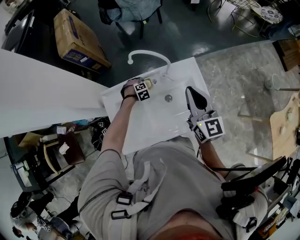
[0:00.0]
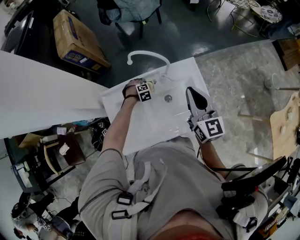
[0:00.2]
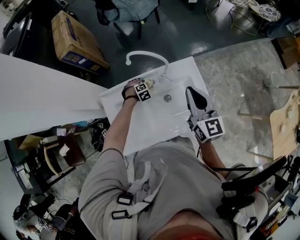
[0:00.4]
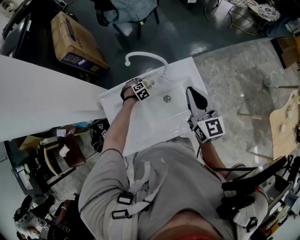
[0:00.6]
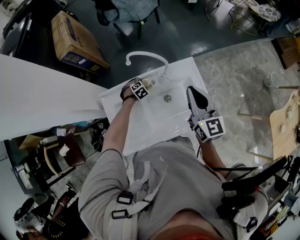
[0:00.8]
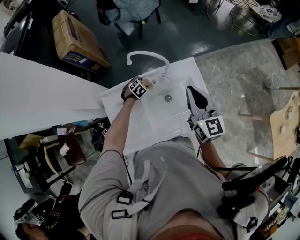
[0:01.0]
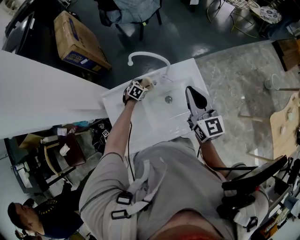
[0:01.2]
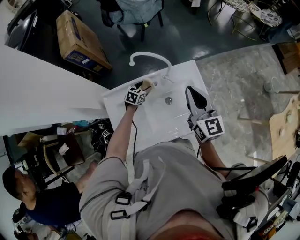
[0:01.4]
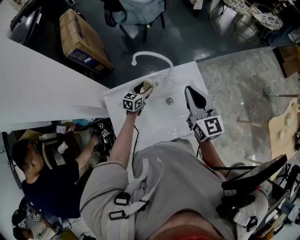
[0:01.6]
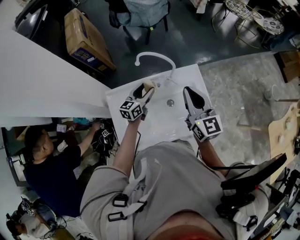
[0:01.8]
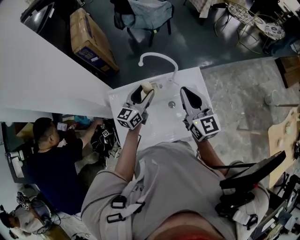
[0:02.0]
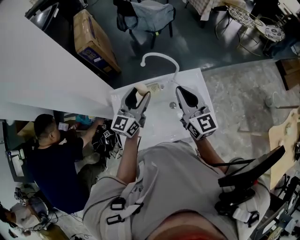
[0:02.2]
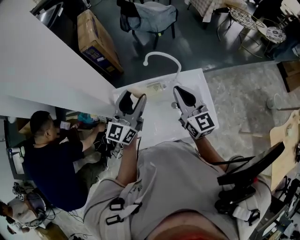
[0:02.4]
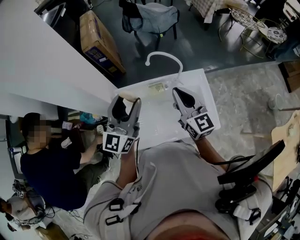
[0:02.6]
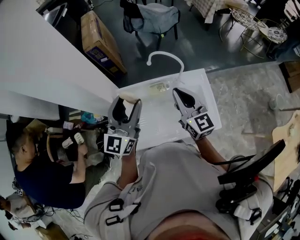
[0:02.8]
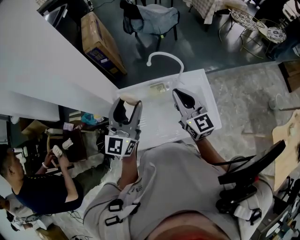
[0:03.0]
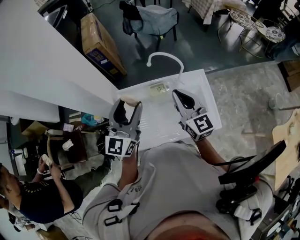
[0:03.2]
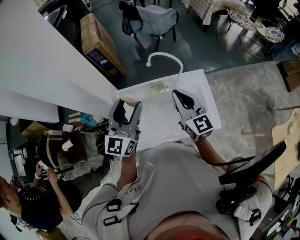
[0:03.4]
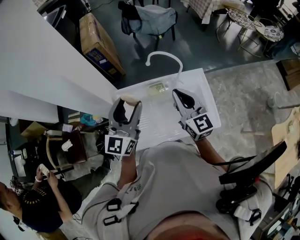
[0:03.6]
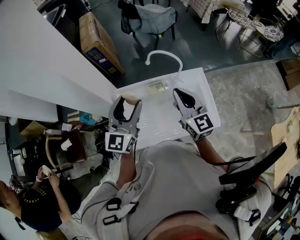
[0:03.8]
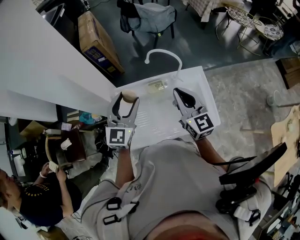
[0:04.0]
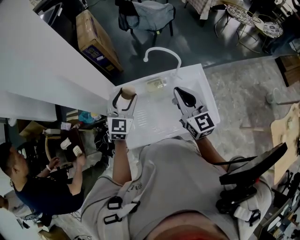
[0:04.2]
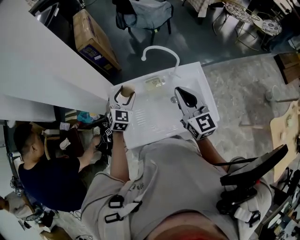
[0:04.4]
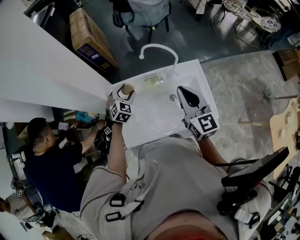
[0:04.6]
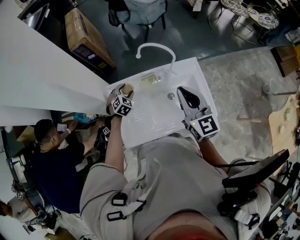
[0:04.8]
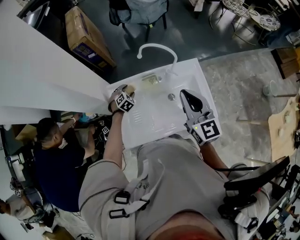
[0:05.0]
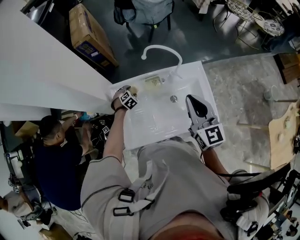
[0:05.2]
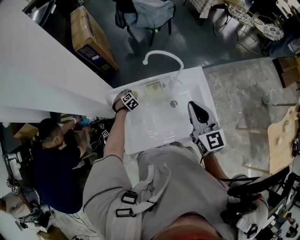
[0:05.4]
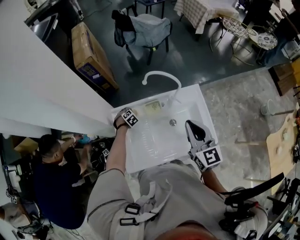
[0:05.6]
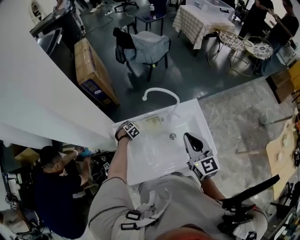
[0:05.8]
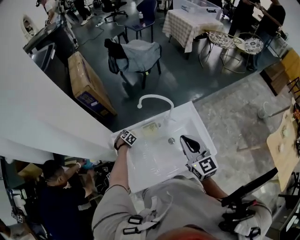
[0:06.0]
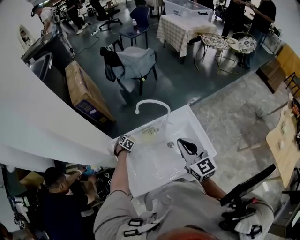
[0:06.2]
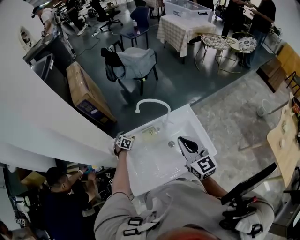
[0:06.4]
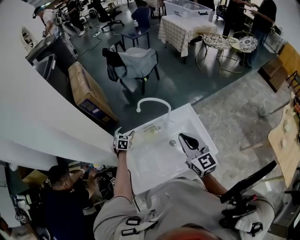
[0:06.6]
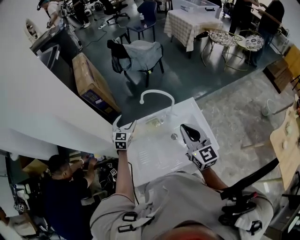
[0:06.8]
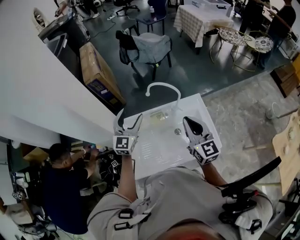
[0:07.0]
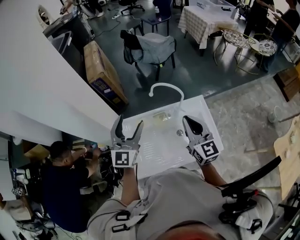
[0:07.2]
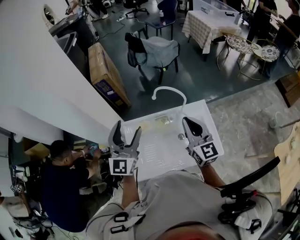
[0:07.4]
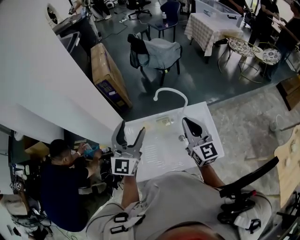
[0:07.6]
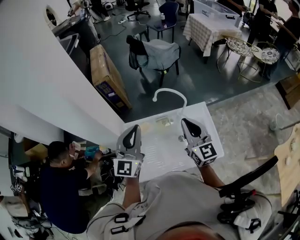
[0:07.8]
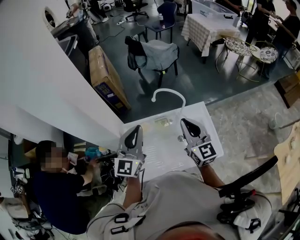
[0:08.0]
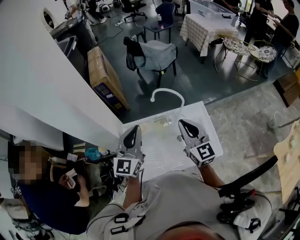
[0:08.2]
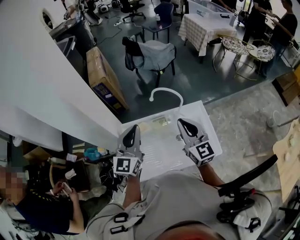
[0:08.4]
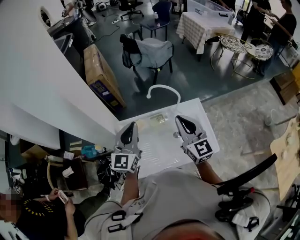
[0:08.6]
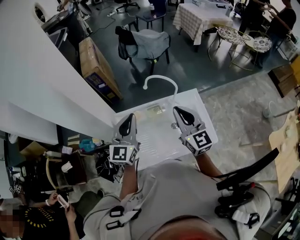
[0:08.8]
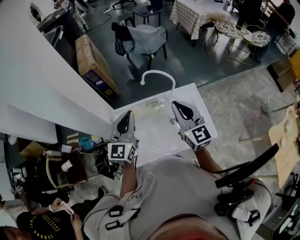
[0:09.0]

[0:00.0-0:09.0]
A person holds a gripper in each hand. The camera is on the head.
0:00.0 to 0:01.6: The left gripper travels upward by roughly 15 cm, and tilts its fingers about 50 degrees upward.
0:01.6 to 0:03.0: The right gripper moves to the left and backward, about 10 cm, while the left gripper goes roughly 40 cm upward and backward, and tilts its fingers roughly 40 degrees upward.
0:03.0 to 0:04.4: The left gripper shifts about 20 cm downward and forward, and angles its fingers downward, by roughly 40 degrees.
0:04.4 to 0:06.0: The left gripper goes some 35 cm downward, and tilts its fingers roughly 50 degrees downward.
0:06.0 to 0:07.6: The left gripper is displaced upward by roughly 50 cm, and tilts its fingers some 80 degrees upward, while the right gripper travels upward by roughly 5 cm.
0:07.6 to 0:09.0: The left gripper shifts roughly 5 cm downward, and closes.

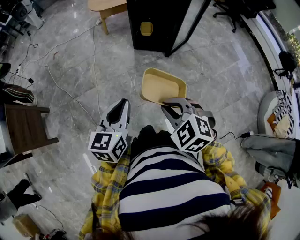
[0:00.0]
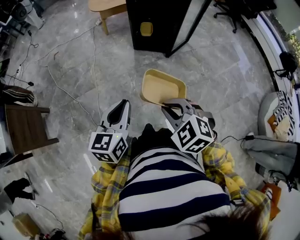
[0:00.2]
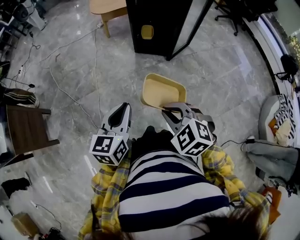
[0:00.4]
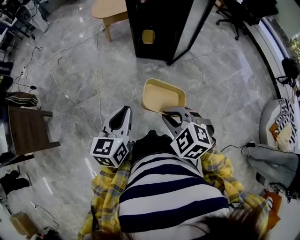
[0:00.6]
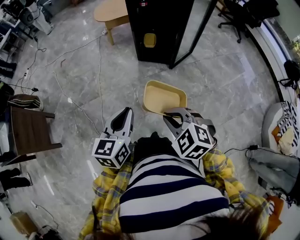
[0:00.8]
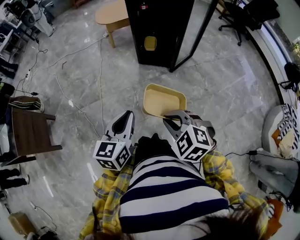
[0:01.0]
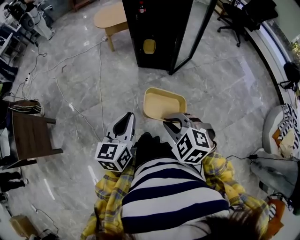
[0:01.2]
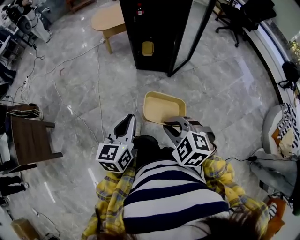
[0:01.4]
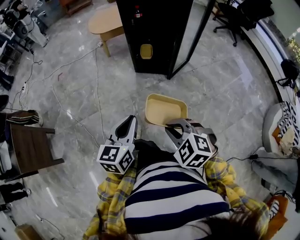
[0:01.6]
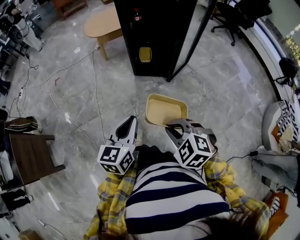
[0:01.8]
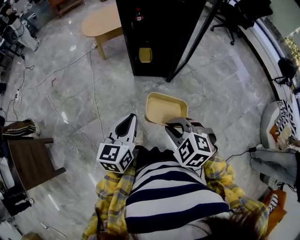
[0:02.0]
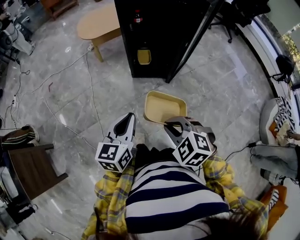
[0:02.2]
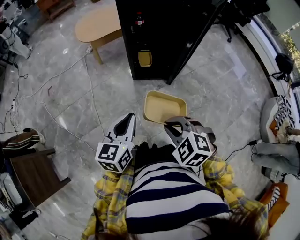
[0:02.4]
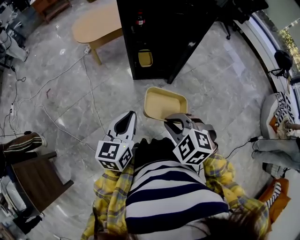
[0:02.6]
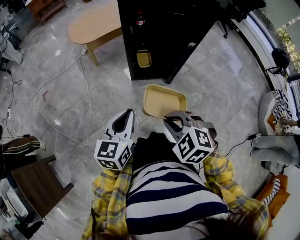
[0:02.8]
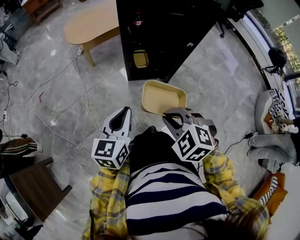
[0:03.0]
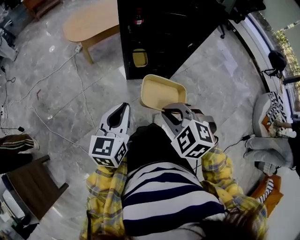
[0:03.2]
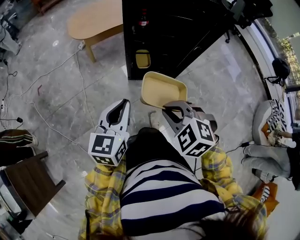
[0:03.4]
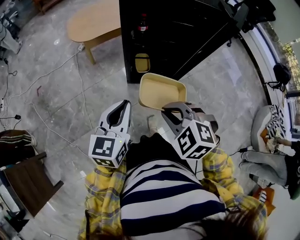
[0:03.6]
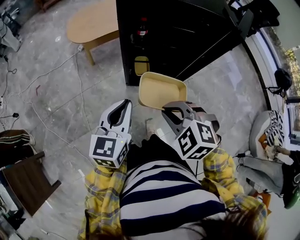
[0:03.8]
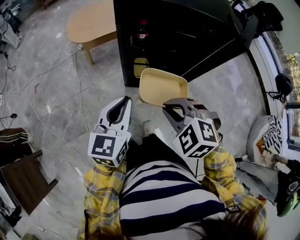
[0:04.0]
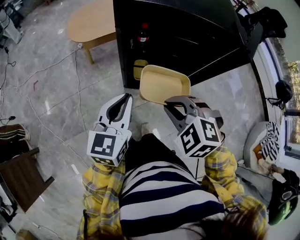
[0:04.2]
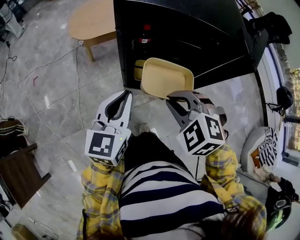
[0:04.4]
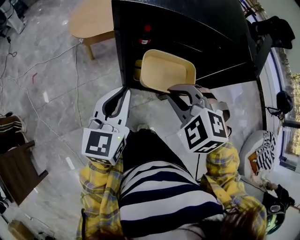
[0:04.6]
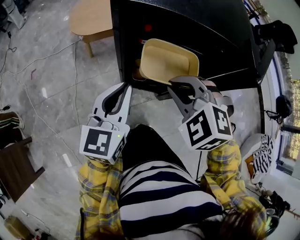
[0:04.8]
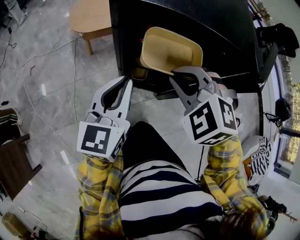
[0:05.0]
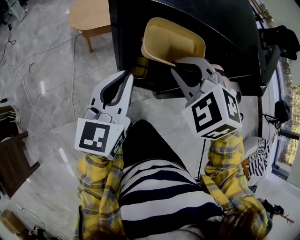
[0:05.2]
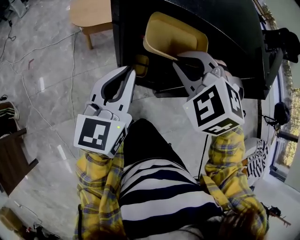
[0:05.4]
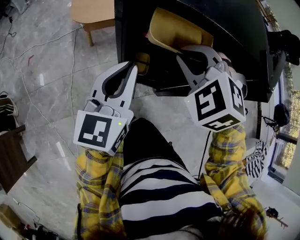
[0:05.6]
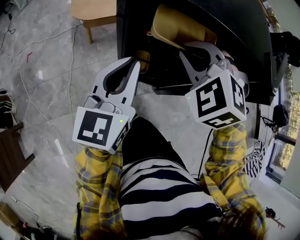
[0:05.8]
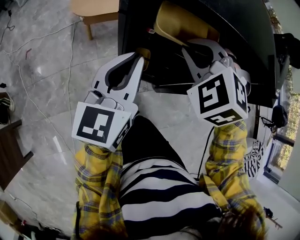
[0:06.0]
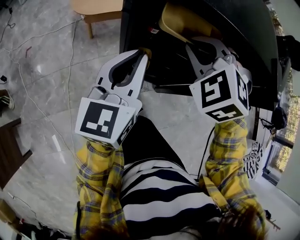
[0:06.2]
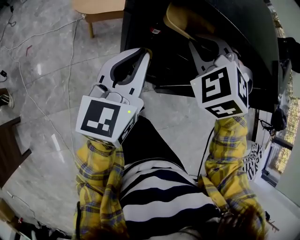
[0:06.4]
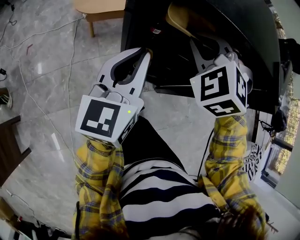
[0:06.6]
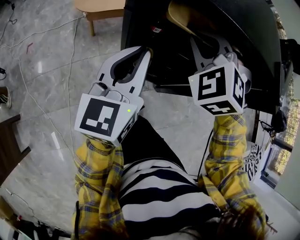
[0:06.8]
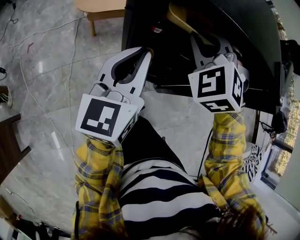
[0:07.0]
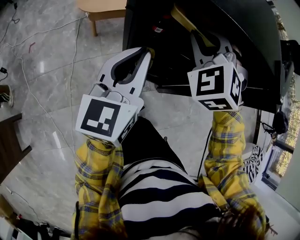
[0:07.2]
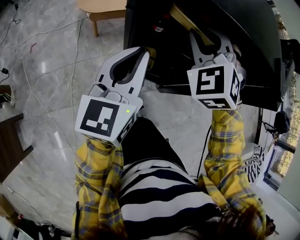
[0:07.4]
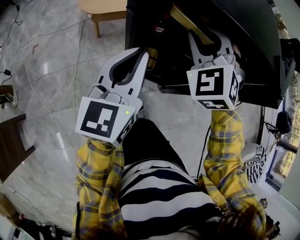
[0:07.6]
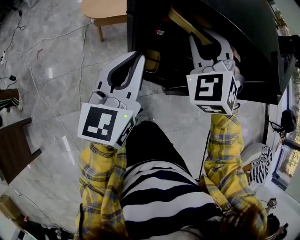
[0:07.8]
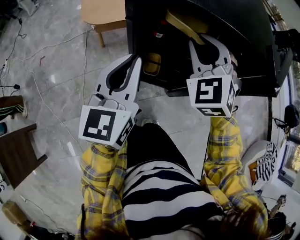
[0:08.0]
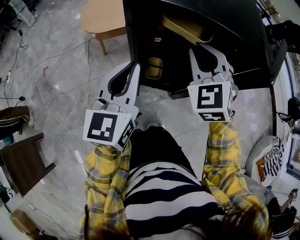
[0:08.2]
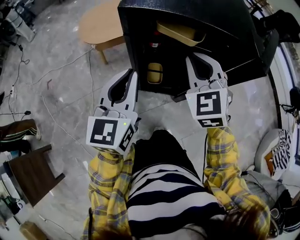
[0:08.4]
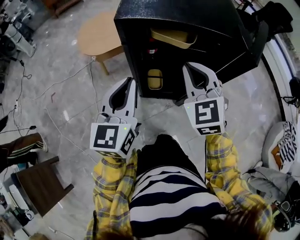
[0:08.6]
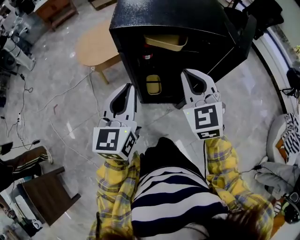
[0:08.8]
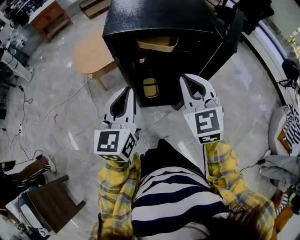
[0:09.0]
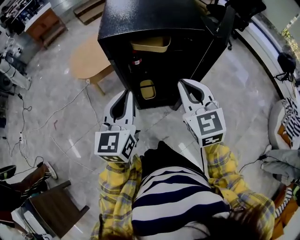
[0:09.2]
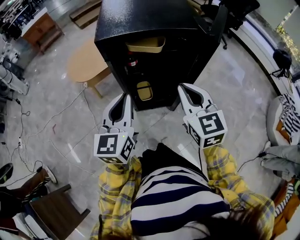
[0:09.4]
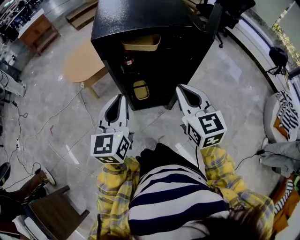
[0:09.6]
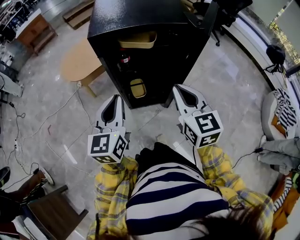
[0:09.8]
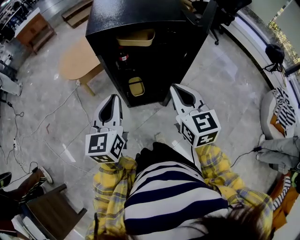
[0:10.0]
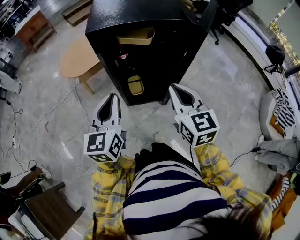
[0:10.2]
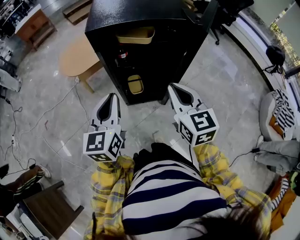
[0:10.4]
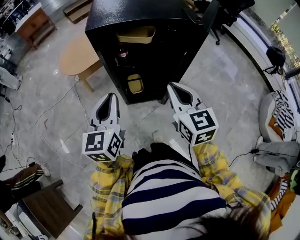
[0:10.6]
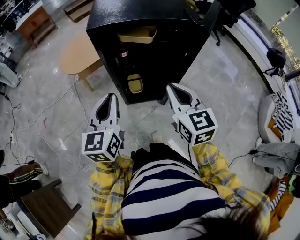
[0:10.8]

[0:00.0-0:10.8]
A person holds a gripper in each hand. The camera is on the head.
0:00.0 to 0:01.6: The right gripper goes about 5 cm forward; the left gripper travels forward and to the right by approximately 10 cm.
0:01.6 to 0:03.0: The left gripper goes some 25 cm forward. The right gripper shifts about 25 cm forward and to the left.
0:03.0 to 0:04.6: The right gripper shifts some 25 cm forward, while the left gripper is displaced forward and to the right by roughly 25 cm.
0:04.6 to 0:06.2: The right gripper travels forward by some 15 cm, while the left gripper heads forward, covering roughly 10 cm.
0:06.2 to 0:07.8: The right gripper swivels some 20 degrees.
0:07.8 to 0:09.2: The right gripper shifts approximately 20 cm backward, and twists approximately 40 degrees clockwise, seen from behind; the left gripper heads backward, covering roughly 5 cm.
0:09.2 to 0:10.8: The right gripper moves approximately 5 cm.

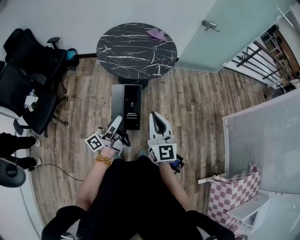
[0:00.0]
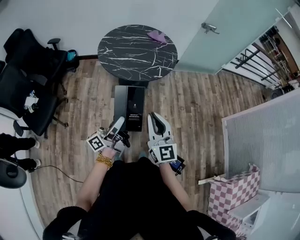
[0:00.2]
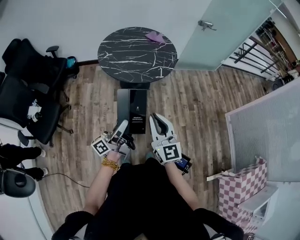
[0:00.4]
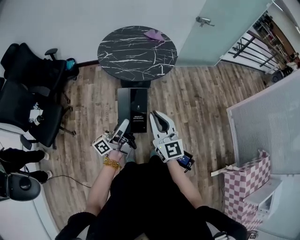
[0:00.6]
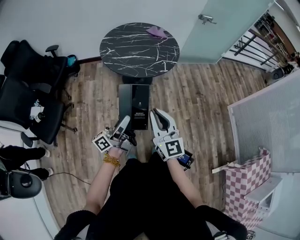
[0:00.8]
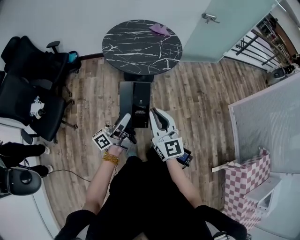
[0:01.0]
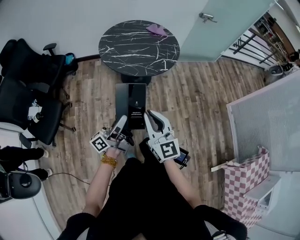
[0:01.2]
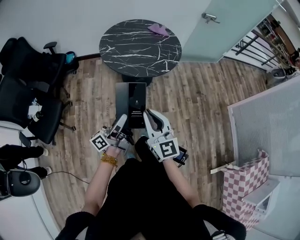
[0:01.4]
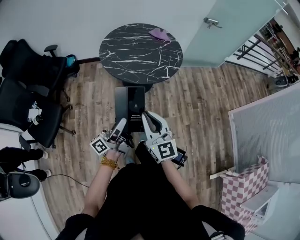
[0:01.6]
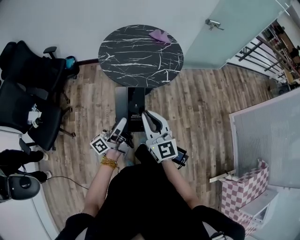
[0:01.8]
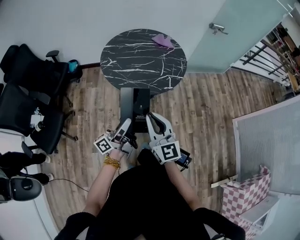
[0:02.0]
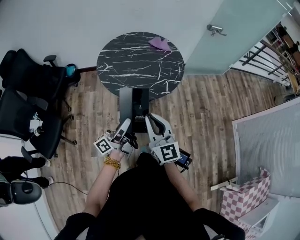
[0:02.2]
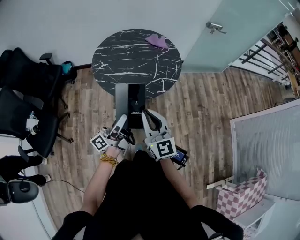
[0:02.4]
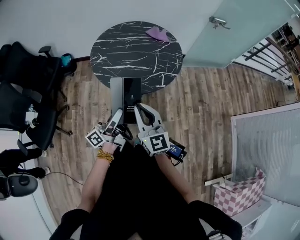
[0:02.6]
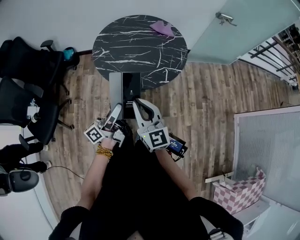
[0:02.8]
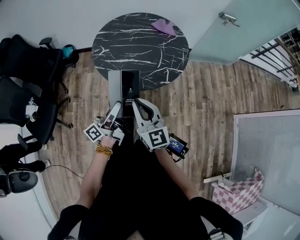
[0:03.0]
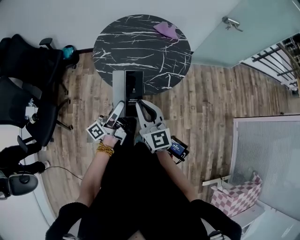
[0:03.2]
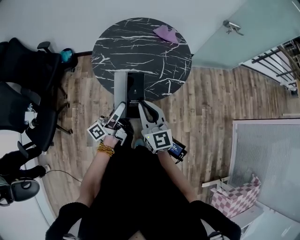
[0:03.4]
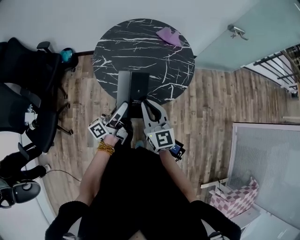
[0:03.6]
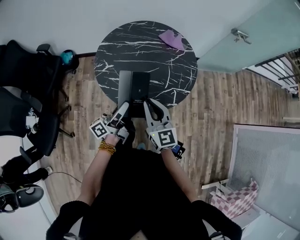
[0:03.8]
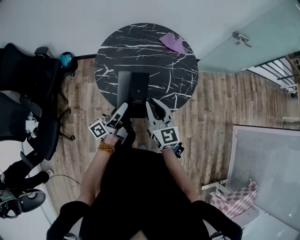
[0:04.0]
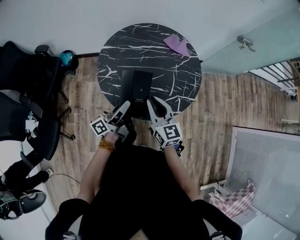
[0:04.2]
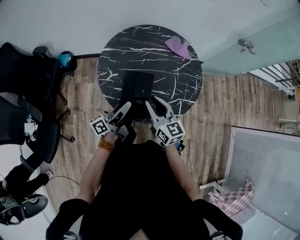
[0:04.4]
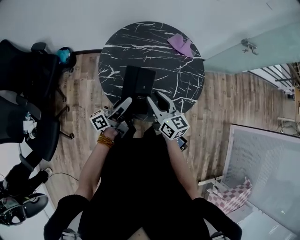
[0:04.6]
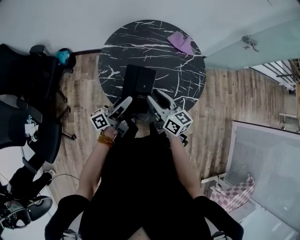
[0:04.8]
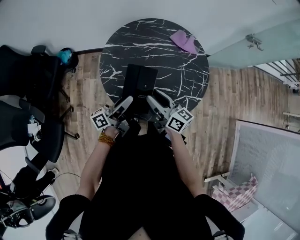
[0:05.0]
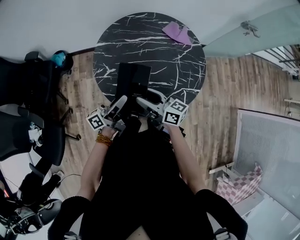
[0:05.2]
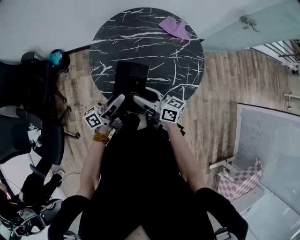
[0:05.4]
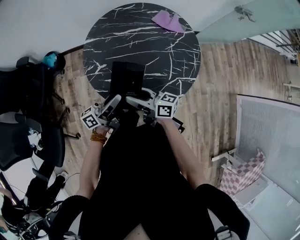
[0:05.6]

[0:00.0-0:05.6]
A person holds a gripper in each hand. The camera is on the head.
0:00.0 to 0:01.4: The right gripper heads to the left, covering some 10 cm; the left gripper moves to the left, some 10 cm.
0:01.4 to 0:02.8: The grippers both shift forward by roughly 20 cm.
0:02.8 to 0:04.2: Both grippers move forward, about 25 cm.
0:04.2 to 0:05.6: The left gripper ends up approximately 5 cm from where it was; the right gripper shifts roughly 10 cm to the left and downward, turns by some 50 degrees, and opens.
